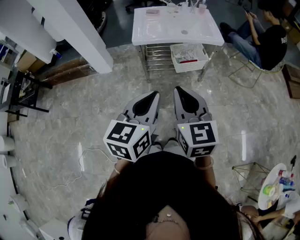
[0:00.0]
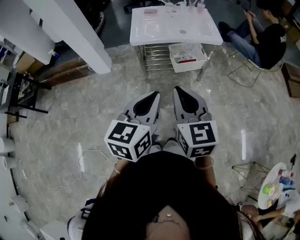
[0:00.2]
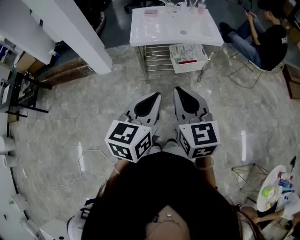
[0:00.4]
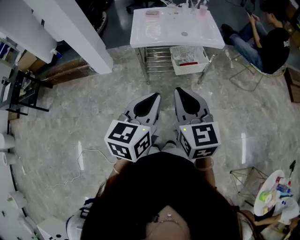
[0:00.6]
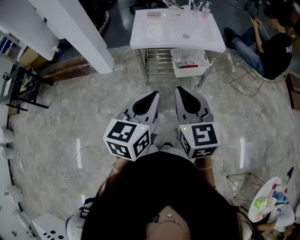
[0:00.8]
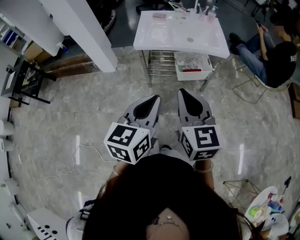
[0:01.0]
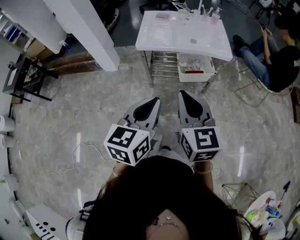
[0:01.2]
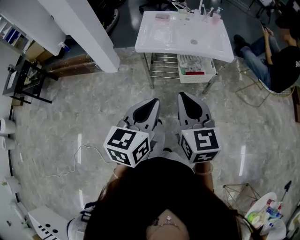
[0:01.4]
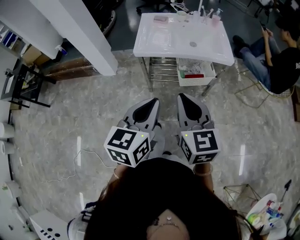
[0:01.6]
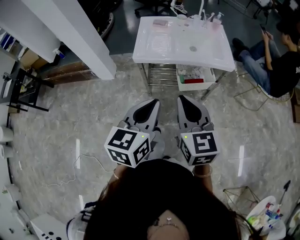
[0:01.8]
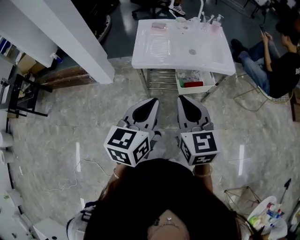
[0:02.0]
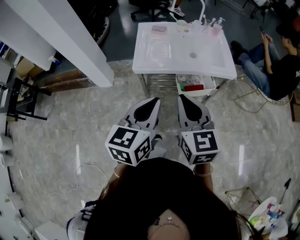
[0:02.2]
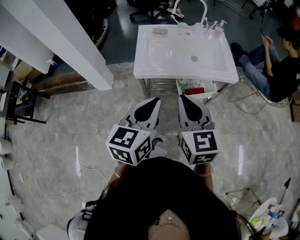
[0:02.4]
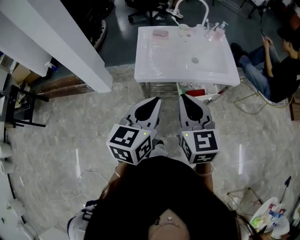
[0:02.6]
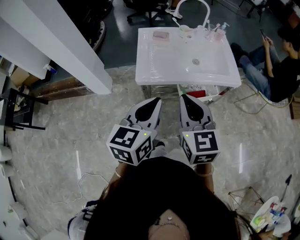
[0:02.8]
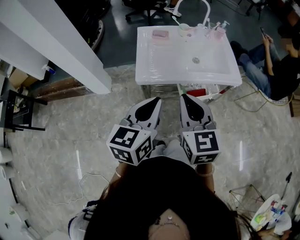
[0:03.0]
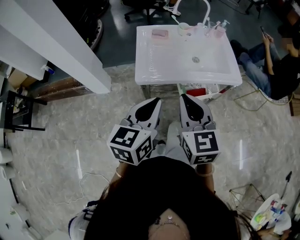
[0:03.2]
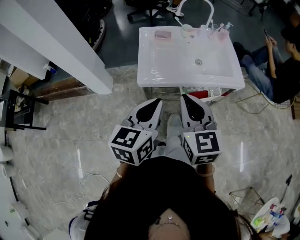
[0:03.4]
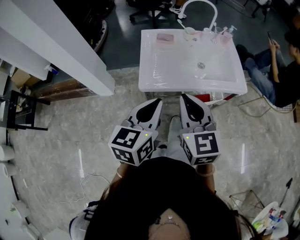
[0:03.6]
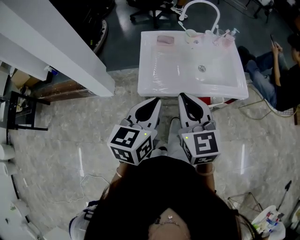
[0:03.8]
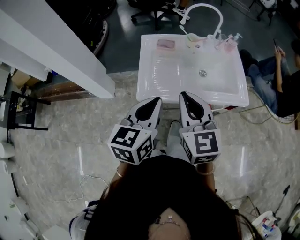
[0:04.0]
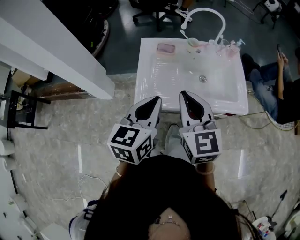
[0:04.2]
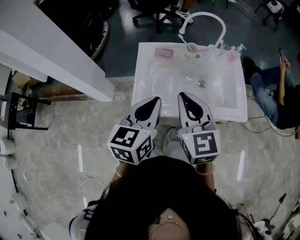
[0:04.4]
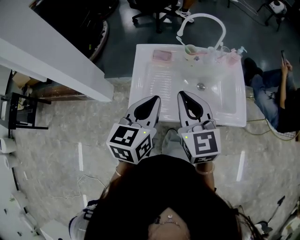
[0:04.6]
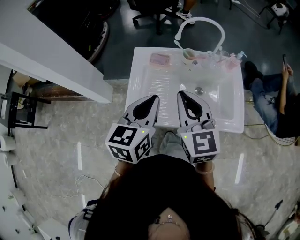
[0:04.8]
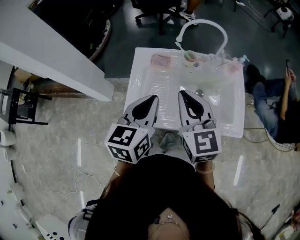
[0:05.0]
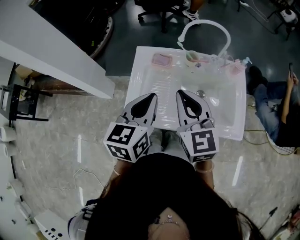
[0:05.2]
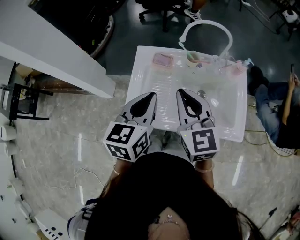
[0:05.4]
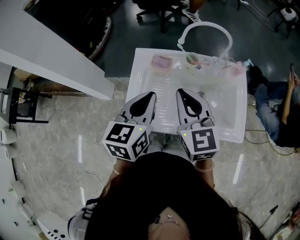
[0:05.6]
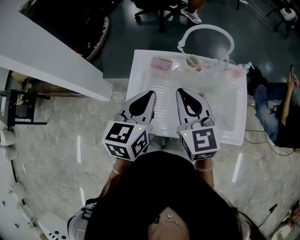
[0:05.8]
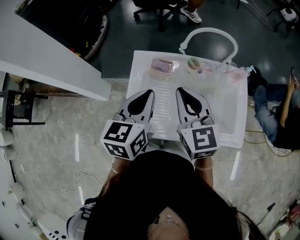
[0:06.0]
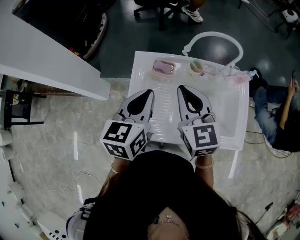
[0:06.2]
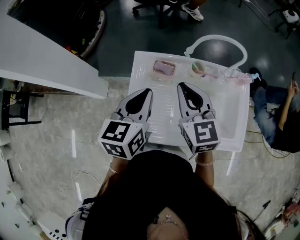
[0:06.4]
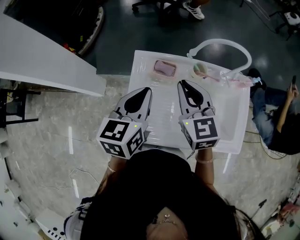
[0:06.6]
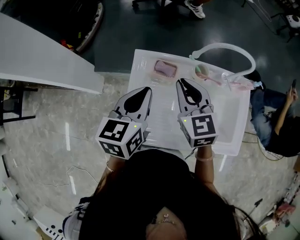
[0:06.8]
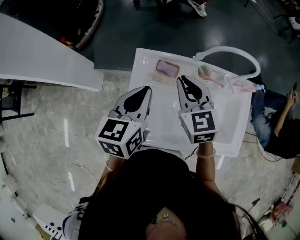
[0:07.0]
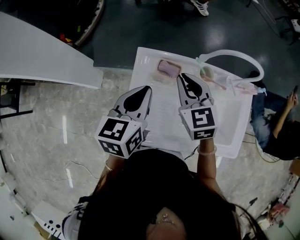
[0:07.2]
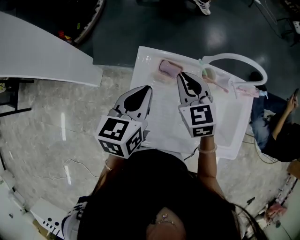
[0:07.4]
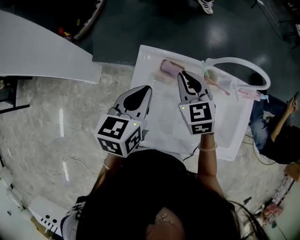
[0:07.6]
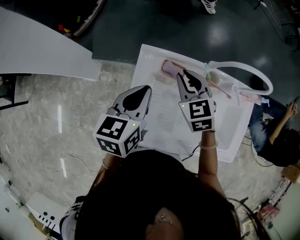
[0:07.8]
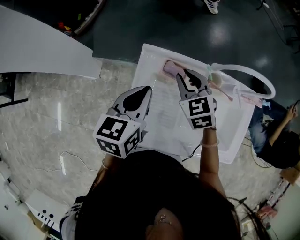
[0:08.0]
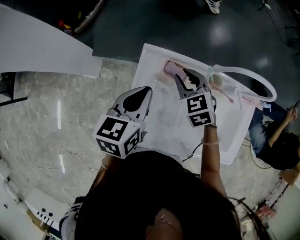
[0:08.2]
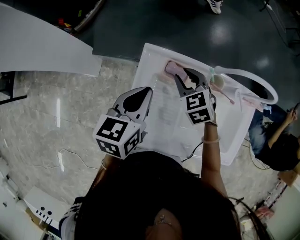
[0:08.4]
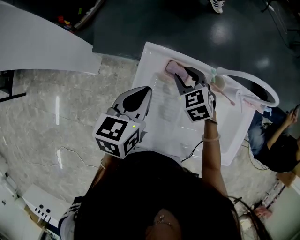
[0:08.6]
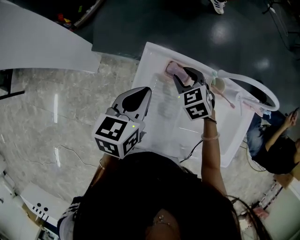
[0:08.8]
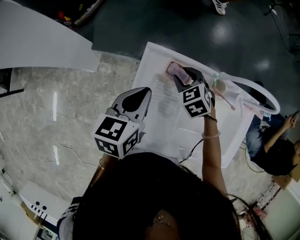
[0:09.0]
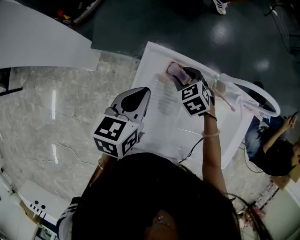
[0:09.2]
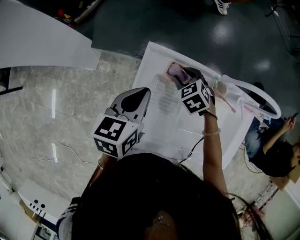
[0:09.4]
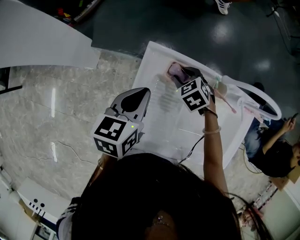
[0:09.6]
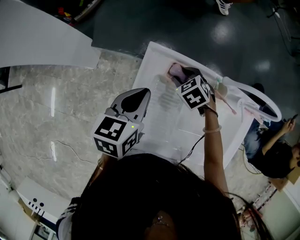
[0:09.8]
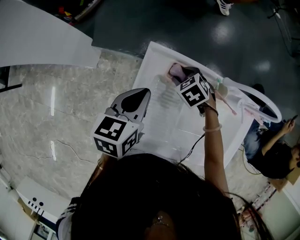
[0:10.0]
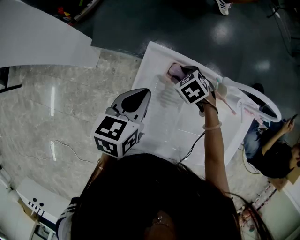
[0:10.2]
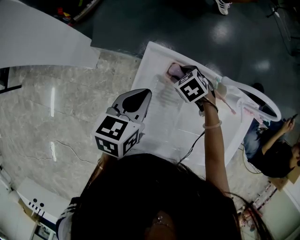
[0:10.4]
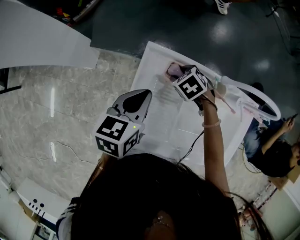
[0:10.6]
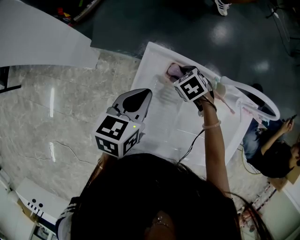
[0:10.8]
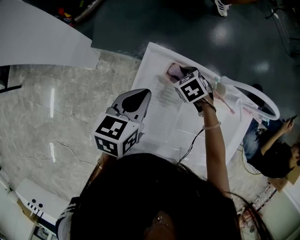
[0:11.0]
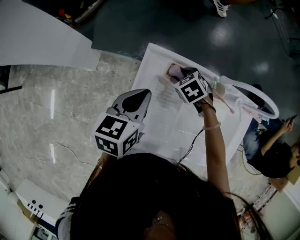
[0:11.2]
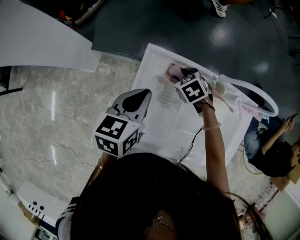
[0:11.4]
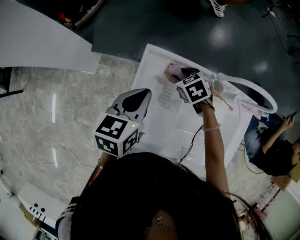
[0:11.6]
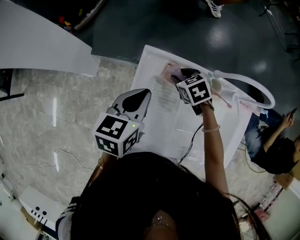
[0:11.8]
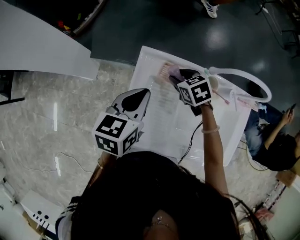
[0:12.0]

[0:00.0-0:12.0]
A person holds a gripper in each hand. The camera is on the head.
0:00.0 to 0:01.6: Both grippers move forward, some 10 cm.
0:01.6 to 0:03.0: The grippers both shift forward and to the left by approximately 20 cm.
0:03.0 to 0:04.4: The two grippers go roughly 20 cm forward.
0:04.4 to 0:06.0: Both grippers move forward, roughly 15 cm.
0:06.0 to 0:07.6: The right gripper heads forward and downward, covering roughly 20 cm, and turns by approximately 20 degrees. Meanwhile the left gripper heads forward, downward and to the left, covering roughly 15 cm.
0:07.6 to 0:09.0: The right gripper moves downward, roughly 15 cm, changes its angle by approximately 30 degrees, and opens up. Meanwhile the left gripper moves approximately 5 cm.
0:09.0 to 0:10.4: The right gripper is displaced downward by about 5 cm.
0:10.4 to 0:12.0: The right gripper is displaced upward by about 5 cm, and swivels approximately 20 degrees.

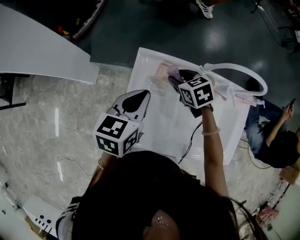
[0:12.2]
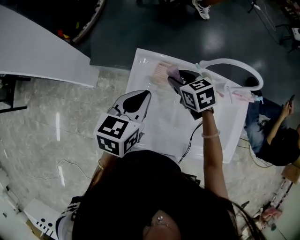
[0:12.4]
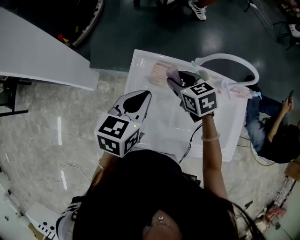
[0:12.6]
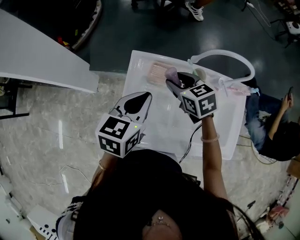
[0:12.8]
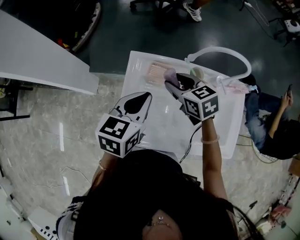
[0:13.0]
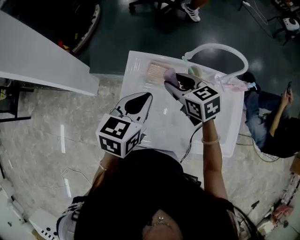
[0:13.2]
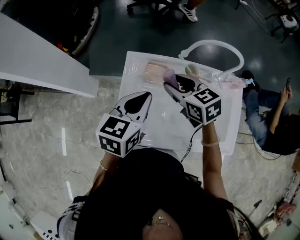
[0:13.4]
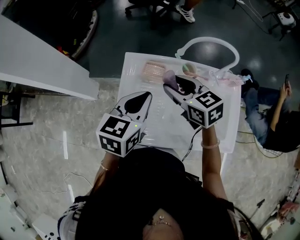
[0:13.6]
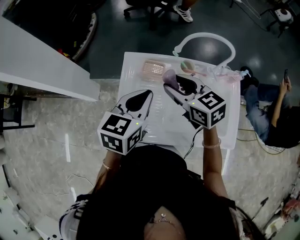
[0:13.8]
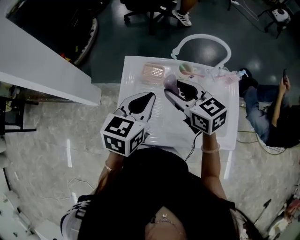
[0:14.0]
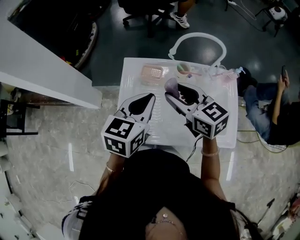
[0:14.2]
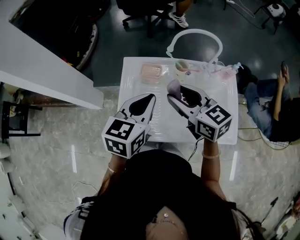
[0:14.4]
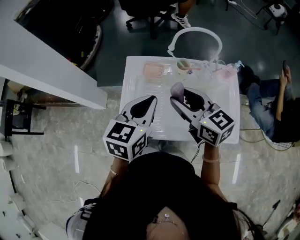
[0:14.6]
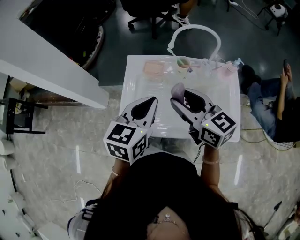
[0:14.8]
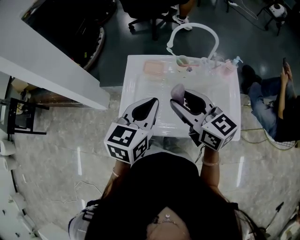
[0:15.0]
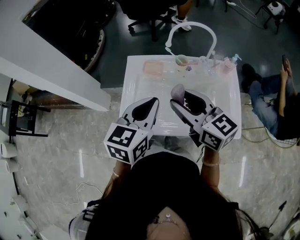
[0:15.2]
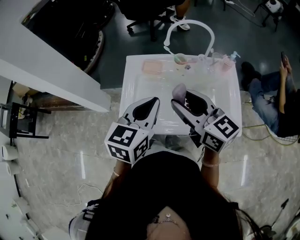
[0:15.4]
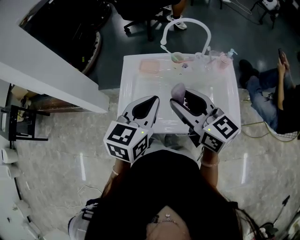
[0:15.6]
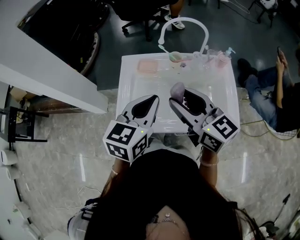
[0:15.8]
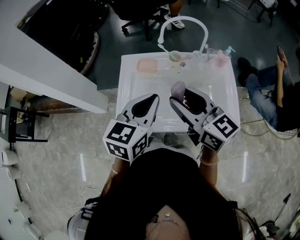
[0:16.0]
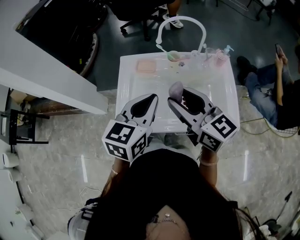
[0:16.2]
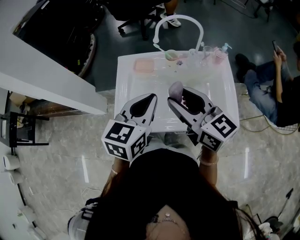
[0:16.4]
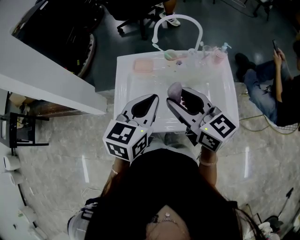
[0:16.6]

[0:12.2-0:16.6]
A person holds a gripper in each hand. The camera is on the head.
0:12.2 to 0:13.6: The right gripper moves upward and backward, some 15 cm, and turns by approximately 20 degrees, while the left gripper moves backward, to the right and upward, roughly 10 cm.
0:13.6 to 0:15.2: The right gripper heads backward and upward, covering some 20 cm, and swivels approximately 20 degrees, while the left gripper travels backward by approximately 15 cm.
0:15.2 to 0:16.6: The grippers make only small movements.

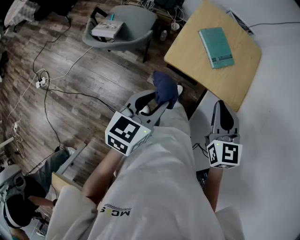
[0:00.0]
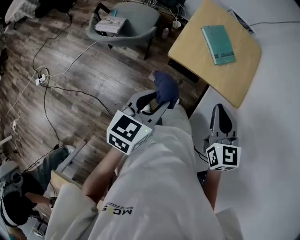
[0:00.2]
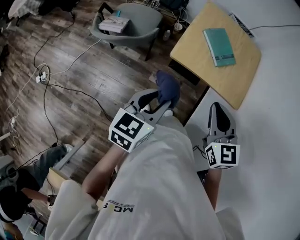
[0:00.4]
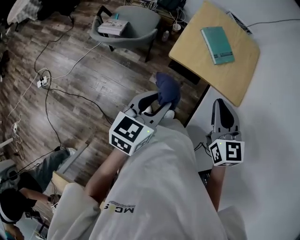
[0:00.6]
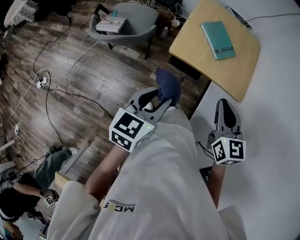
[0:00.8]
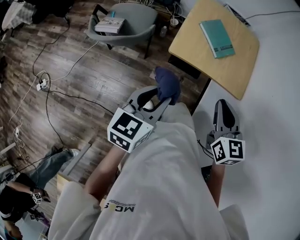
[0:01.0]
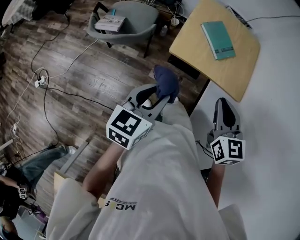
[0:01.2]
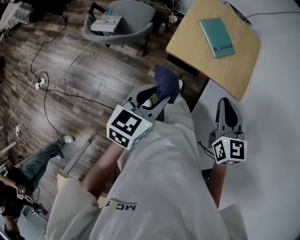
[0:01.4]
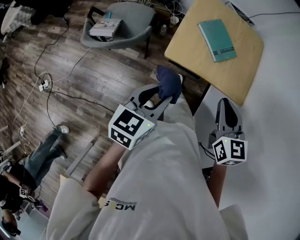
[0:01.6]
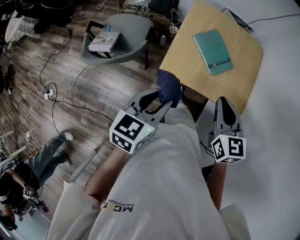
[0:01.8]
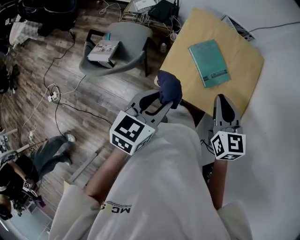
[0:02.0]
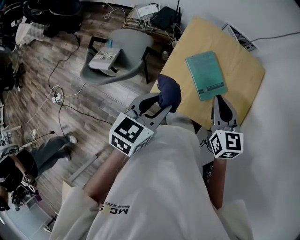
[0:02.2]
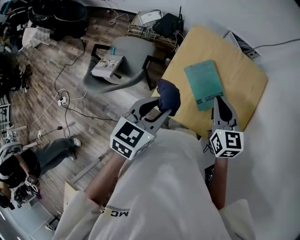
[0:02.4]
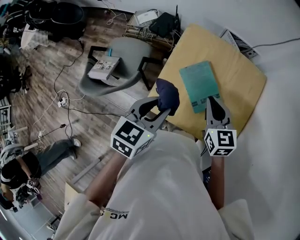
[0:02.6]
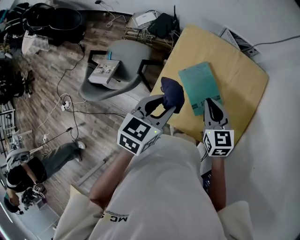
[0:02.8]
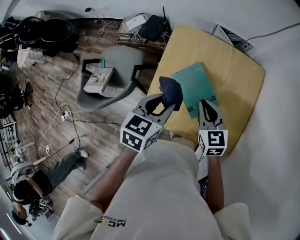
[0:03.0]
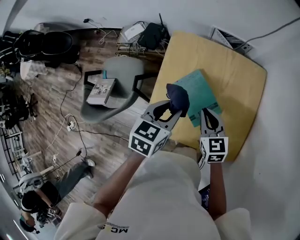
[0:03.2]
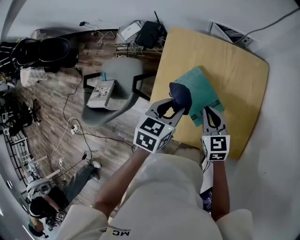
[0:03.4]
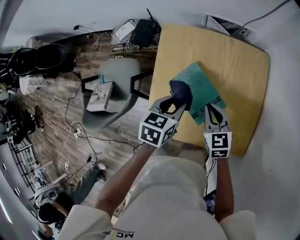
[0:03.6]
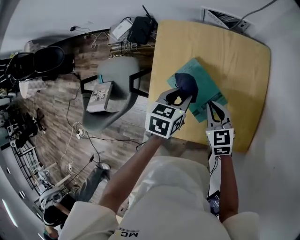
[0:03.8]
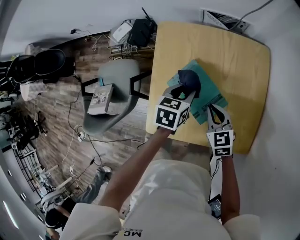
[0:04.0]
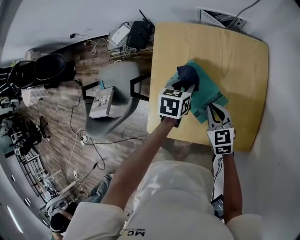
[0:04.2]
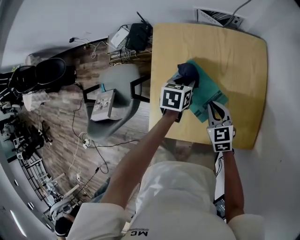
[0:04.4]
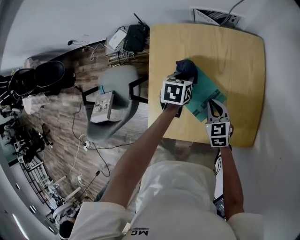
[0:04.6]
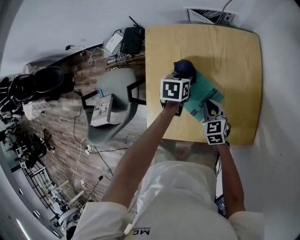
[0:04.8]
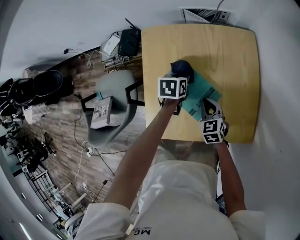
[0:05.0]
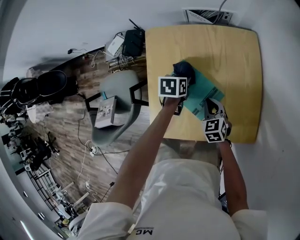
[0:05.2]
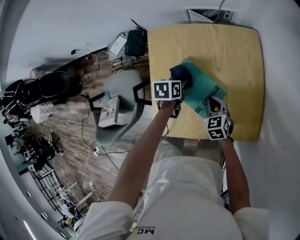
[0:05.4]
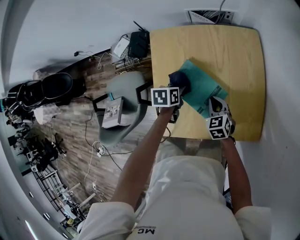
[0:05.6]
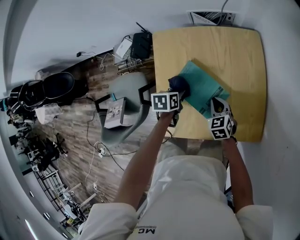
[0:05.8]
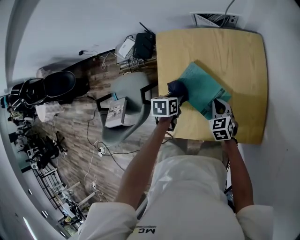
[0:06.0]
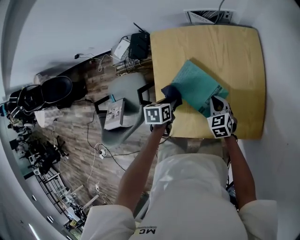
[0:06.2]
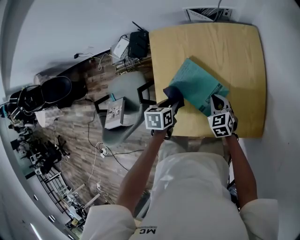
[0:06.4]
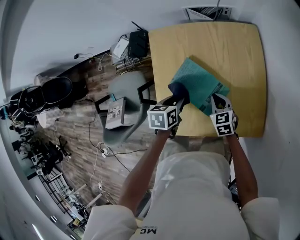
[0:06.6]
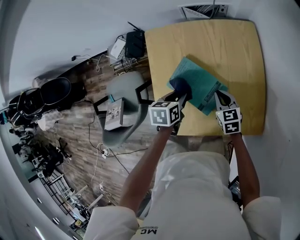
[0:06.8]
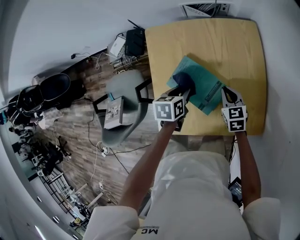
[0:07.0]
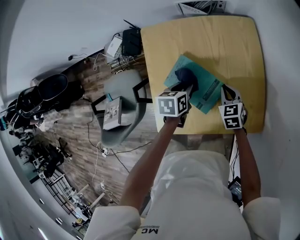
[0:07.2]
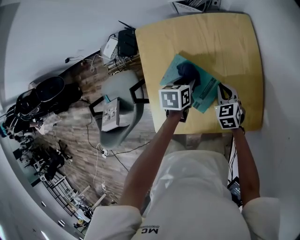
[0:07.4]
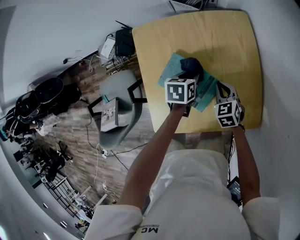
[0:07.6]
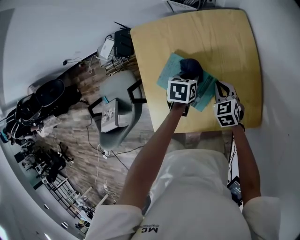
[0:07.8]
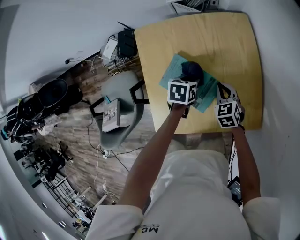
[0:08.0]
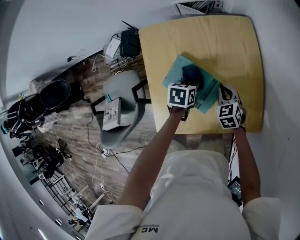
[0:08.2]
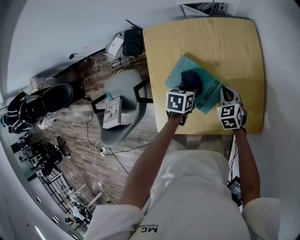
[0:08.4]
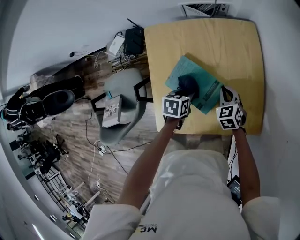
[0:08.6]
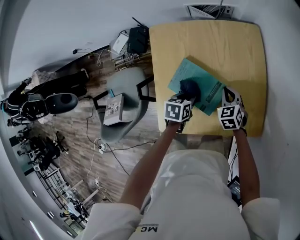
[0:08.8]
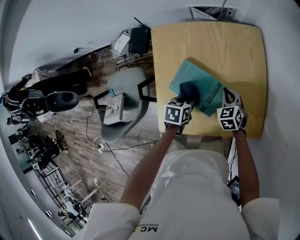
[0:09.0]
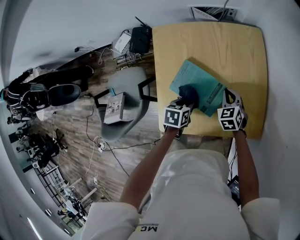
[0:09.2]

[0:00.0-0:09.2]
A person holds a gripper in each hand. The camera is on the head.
0:01.6 to 0:03.0: The right gripper shifts approximately 35 cm forward and downward, while the left gripper shifts about 35 cm forward and to the right.
0:03.0 to 0:04.6: The left gripper travels downward and forward by some 25 cm, while the right gripper travels downward by roughly 15 cm.
0:04.6 to 0:06.2: The left gripper is displaced backward and to the left by about 15 cm.
0:06.2 to 0:07.6: The left gripper heads to the right and forward, covering roughly 20 cm. The right gripper moves to the right, roughly 5 cm.
0:07.6 to 0:09.2: The left gripper goes about 10 cm backward.
